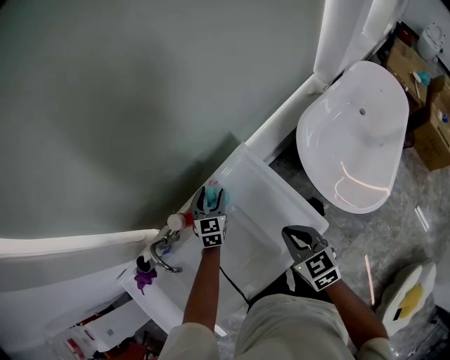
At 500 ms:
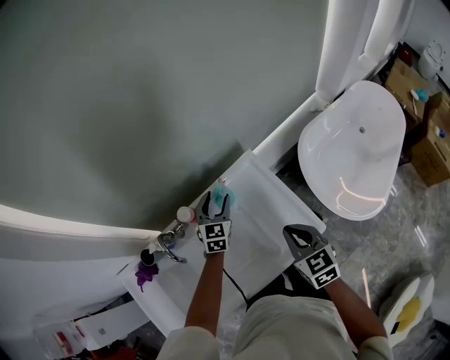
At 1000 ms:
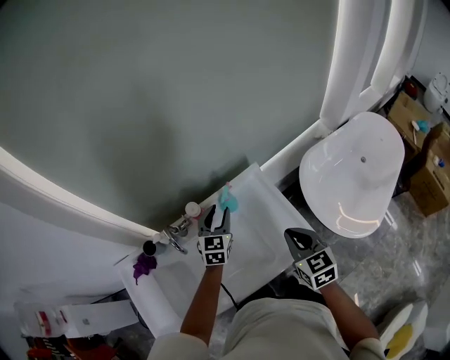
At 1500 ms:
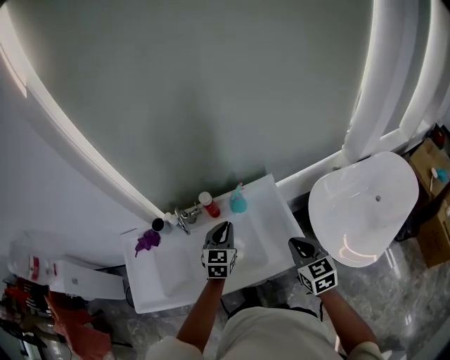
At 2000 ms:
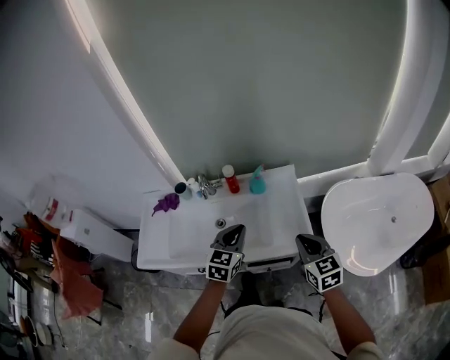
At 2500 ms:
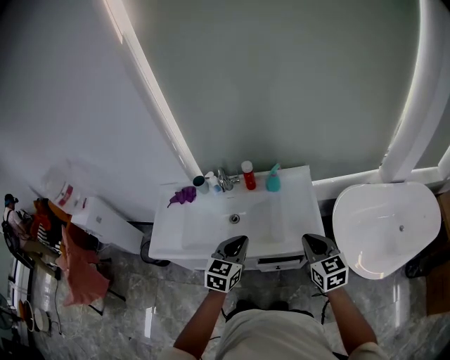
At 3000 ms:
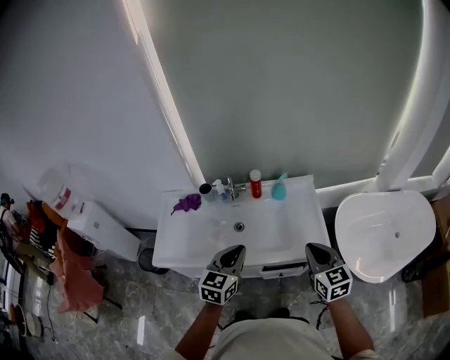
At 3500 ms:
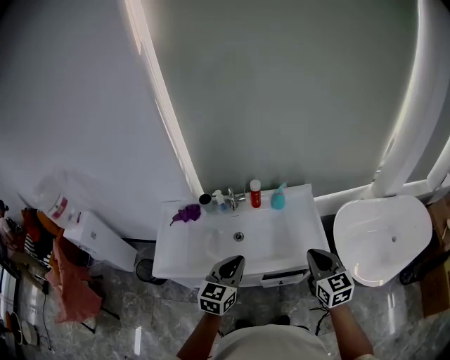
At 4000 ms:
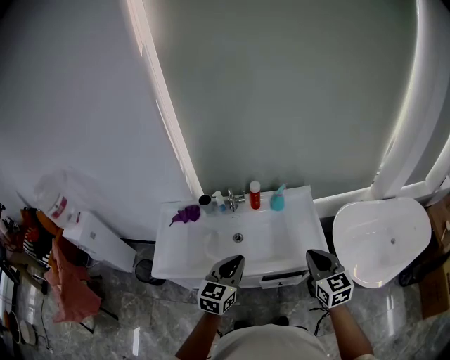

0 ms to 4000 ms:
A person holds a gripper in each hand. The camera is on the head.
0 ms to 2000 ms: The left gripper heads backward and upward, covering roughly 40 cm, changes its angle by roughly 20 degrees, and closes its fingers, while the right gripper goes roughly 20 cm backward and upward, and swivels some 30 degrees.
2000 ms to 4000 ms: The left gripper travels to the left, backward and upward by roughly 20 cm. Meanwhile the right gripper shifts roughly 10 cm to the left, upward and backward.

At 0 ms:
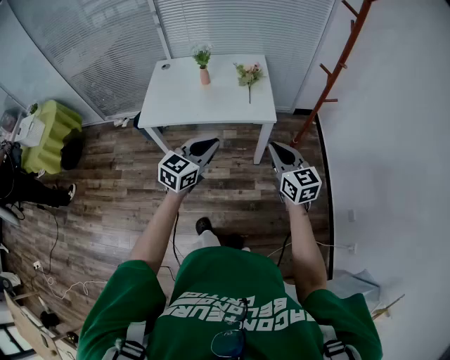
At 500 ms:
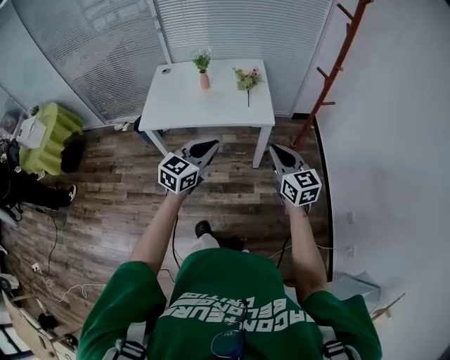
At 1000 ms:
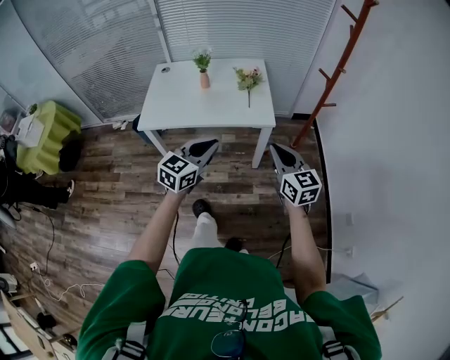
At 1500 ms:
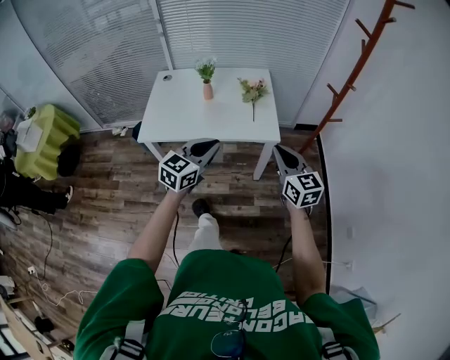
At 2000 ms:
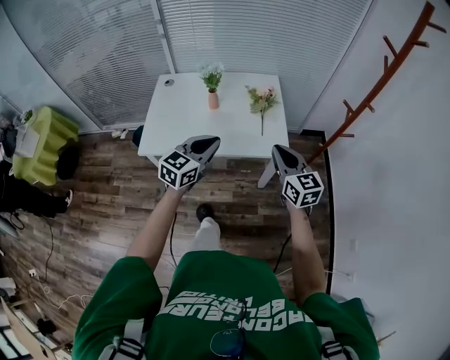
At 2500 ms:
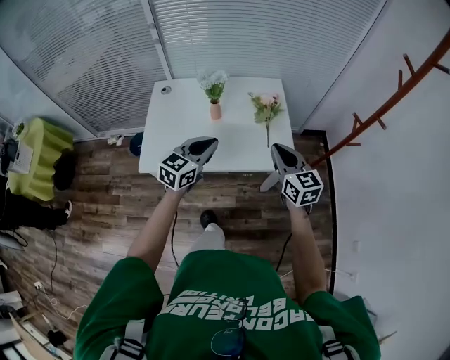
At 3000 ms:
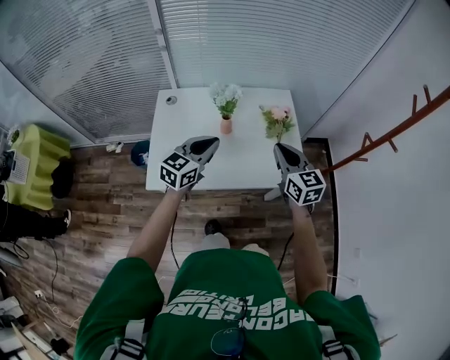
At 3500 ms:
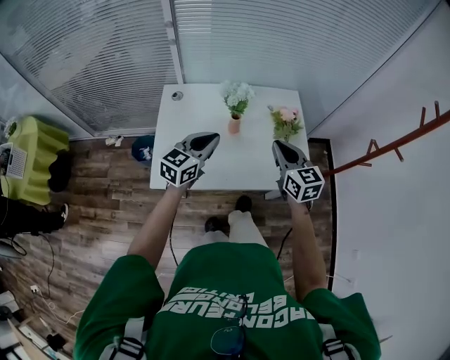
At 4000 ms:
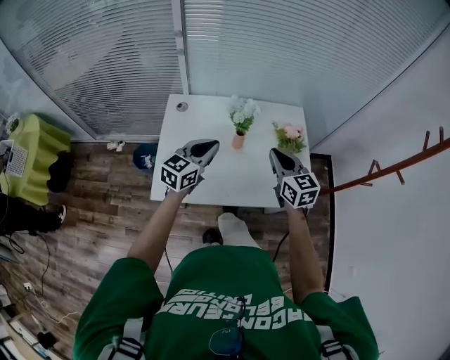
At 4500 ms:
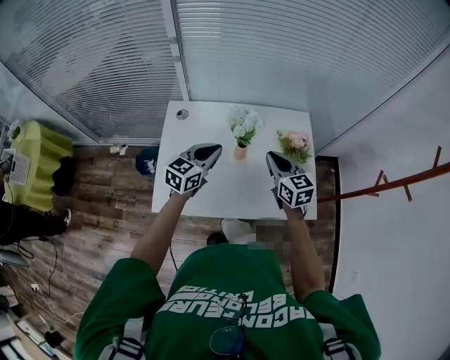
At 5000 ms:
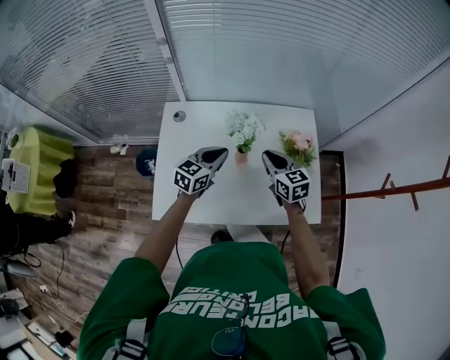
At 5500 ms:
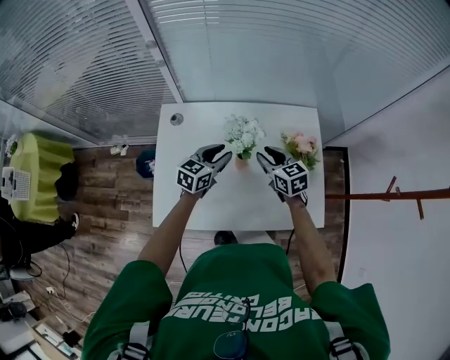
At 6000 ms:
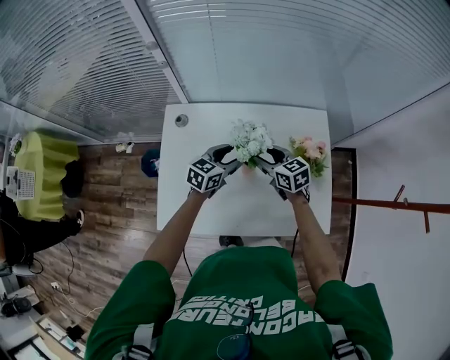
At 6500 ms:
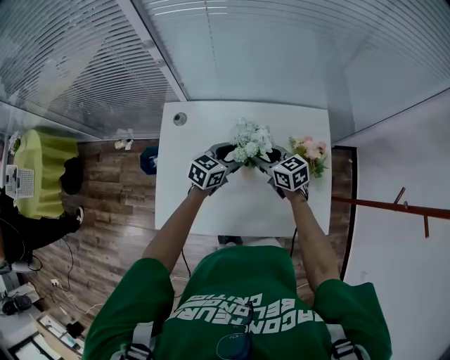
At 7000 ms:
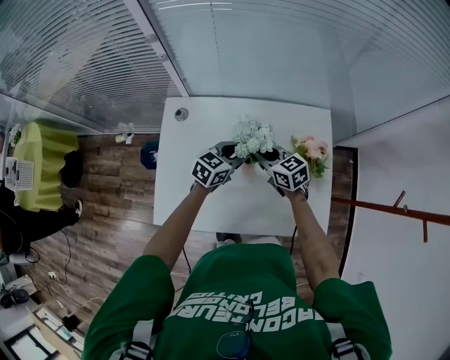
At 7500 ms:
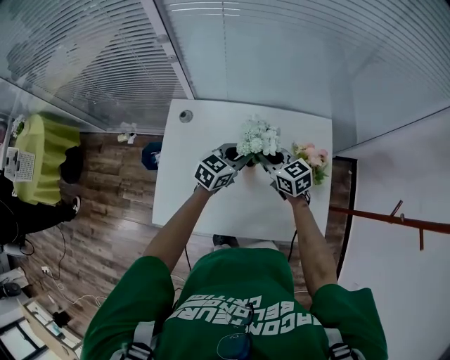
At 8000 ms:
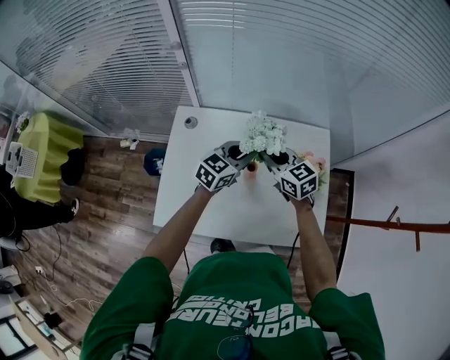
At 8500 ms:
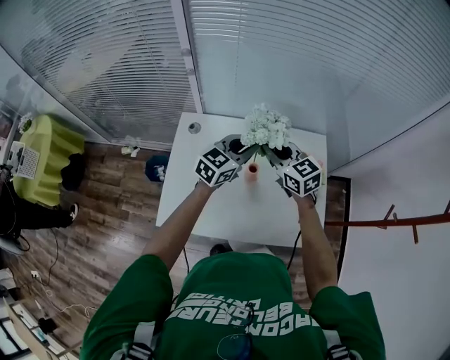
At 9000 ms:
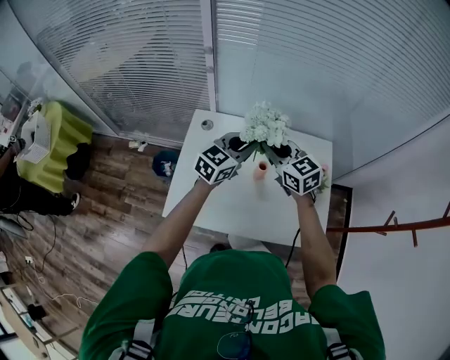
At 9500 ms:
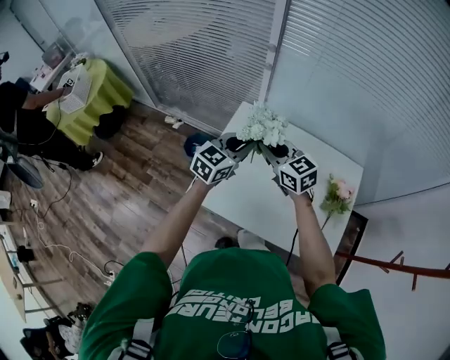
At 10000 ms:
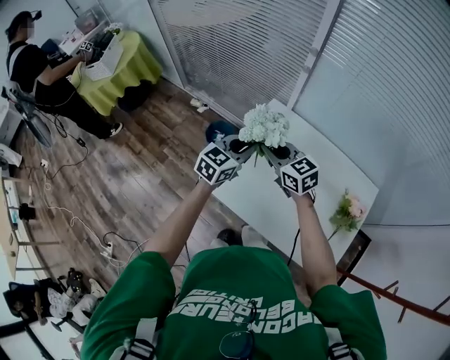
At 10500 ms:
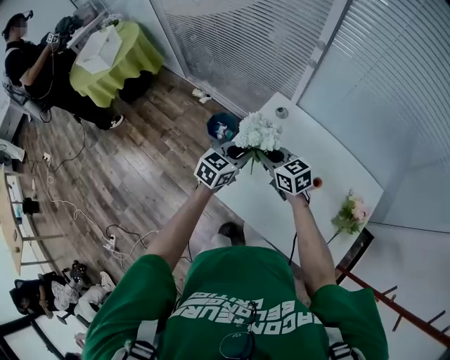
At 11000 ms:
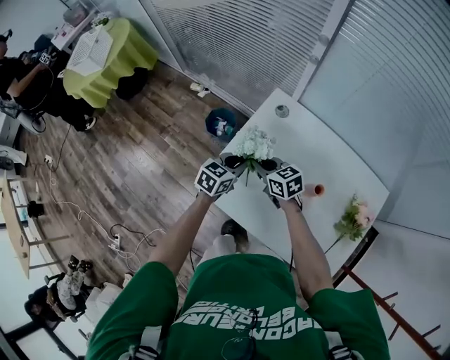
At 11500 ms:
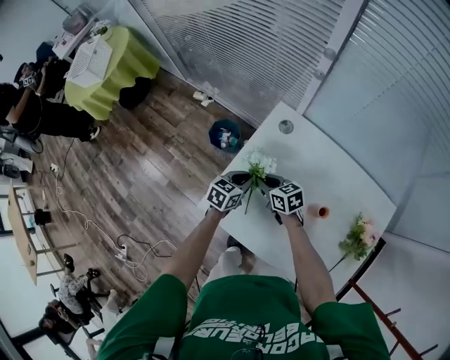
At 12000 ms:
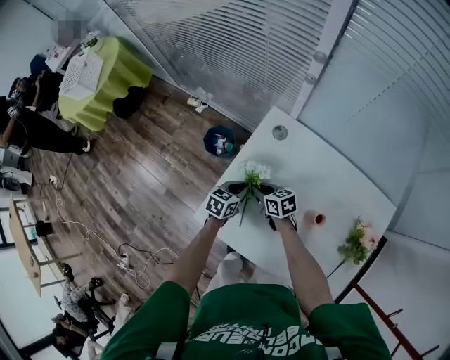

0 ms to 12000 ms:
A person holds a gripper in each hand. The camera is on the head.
0 ms to 2000 ms: Both grippers move forward and to the left, some 20 cm.
2000 ms to 4000 ms: Both grippers move forward and to the left, roughly 30 cm.
4000 ms to 6000 ms: Both grippers move forward and downward, approximately 25 cm. The right gripper changes its angle by about 30 degrees, and opens up, while the left gripper opens its fingers.
6000 ms to 8000 ms: The grippers both shift upward by approximately 10 cm. The right gripper closes up. Meanwhile the left gripper closes its fingers.
8000 ms to 10000 ms: The left gripper shifts by about 30 cm, and changes its angle by roughly 30 degrees; the right gripper shifts by roughly 30 cm, and swivels approximately 30 degrees.
10000 ms to 12000 ms: The two grippers go roughly 35 cm downward. The right gripper rotates some 30 degrees, while the left gripper swivels about 30 degrees.

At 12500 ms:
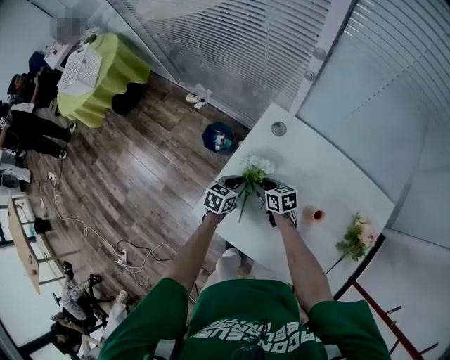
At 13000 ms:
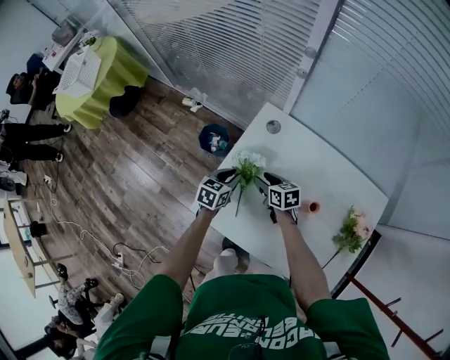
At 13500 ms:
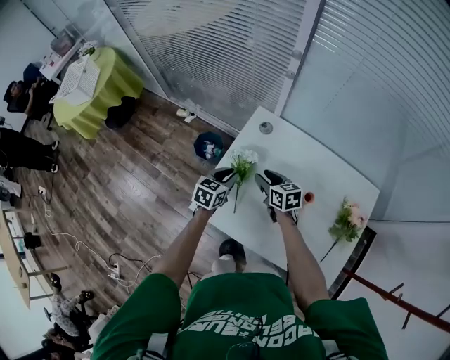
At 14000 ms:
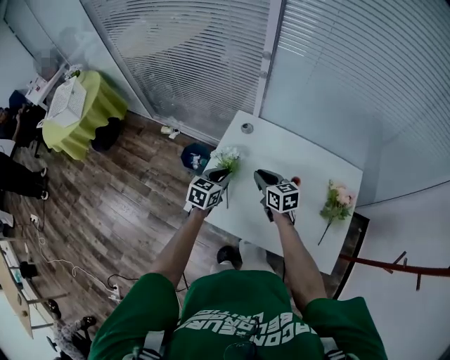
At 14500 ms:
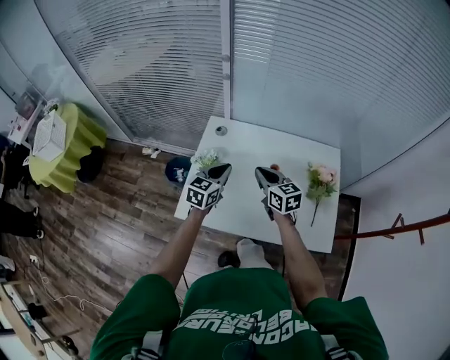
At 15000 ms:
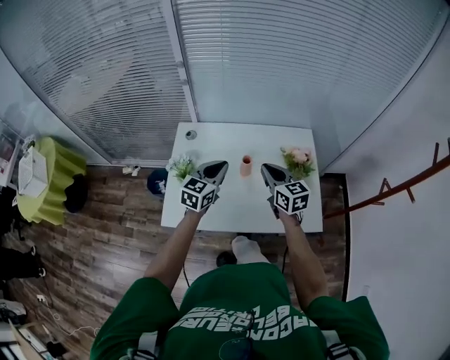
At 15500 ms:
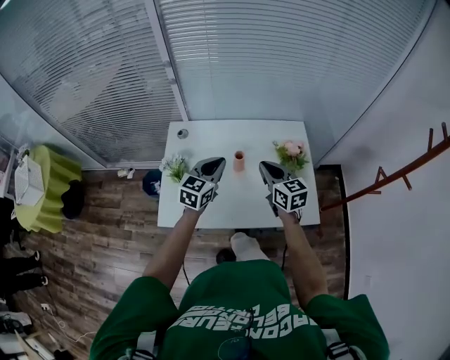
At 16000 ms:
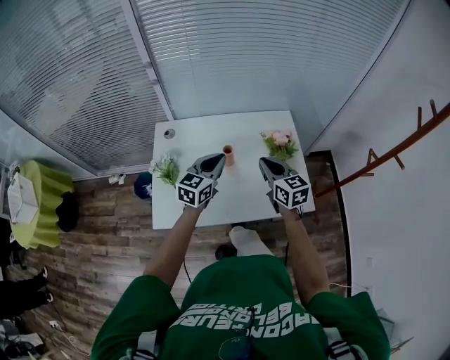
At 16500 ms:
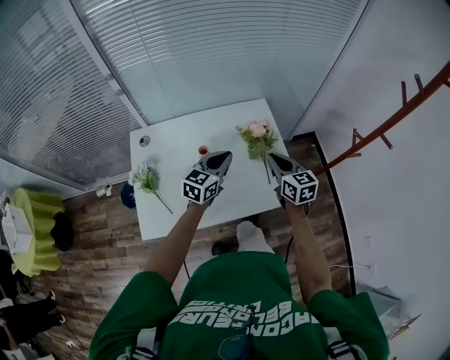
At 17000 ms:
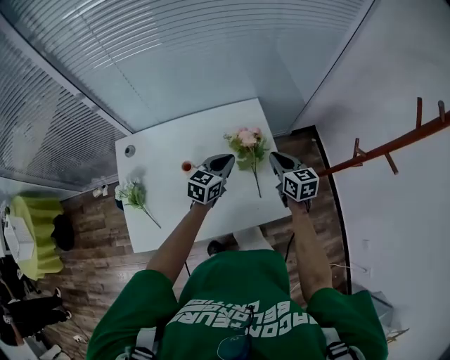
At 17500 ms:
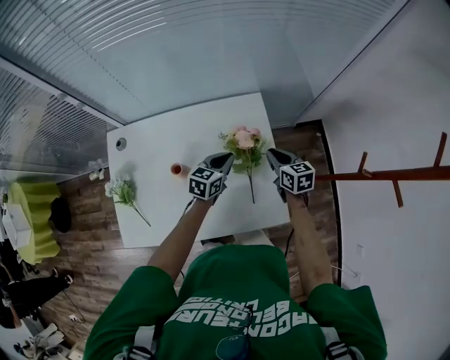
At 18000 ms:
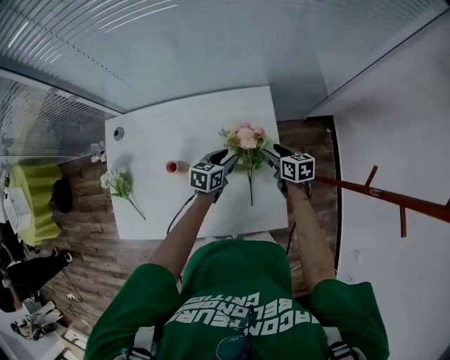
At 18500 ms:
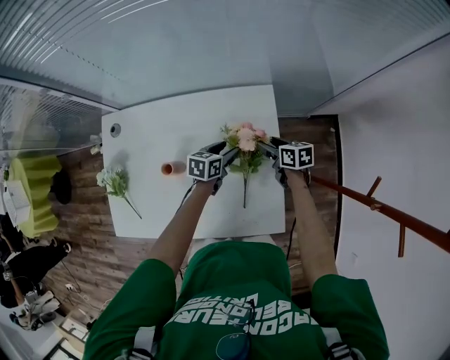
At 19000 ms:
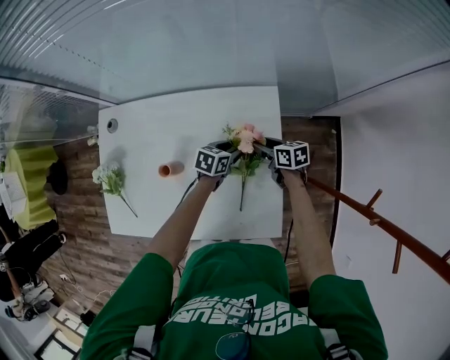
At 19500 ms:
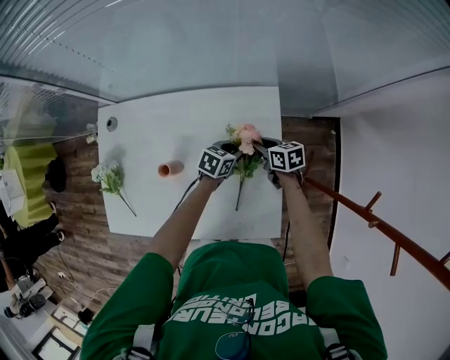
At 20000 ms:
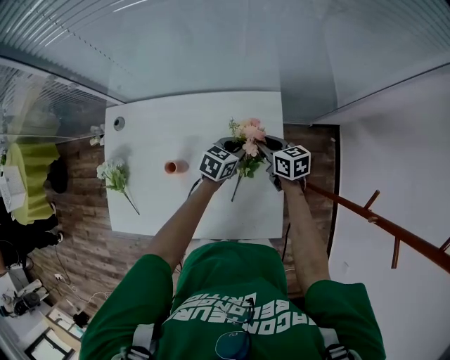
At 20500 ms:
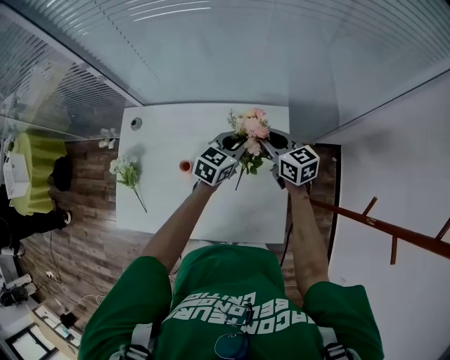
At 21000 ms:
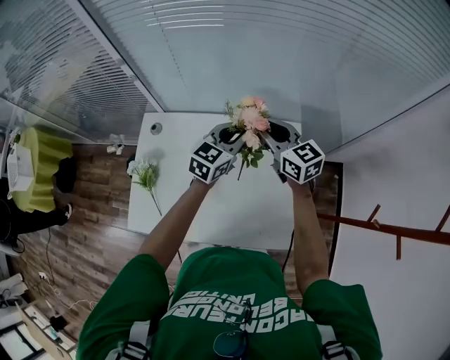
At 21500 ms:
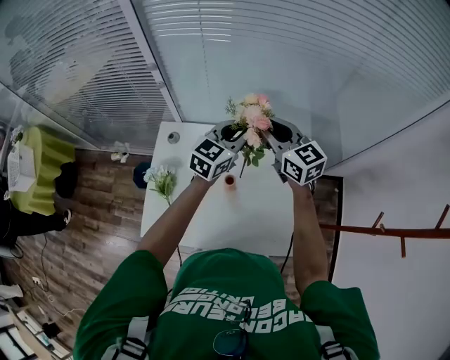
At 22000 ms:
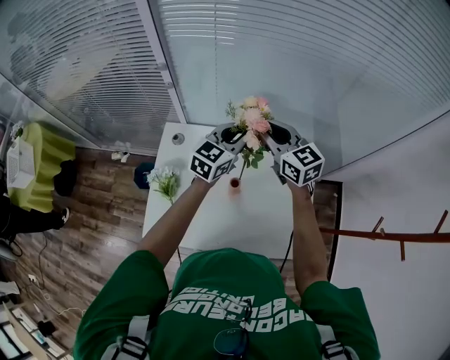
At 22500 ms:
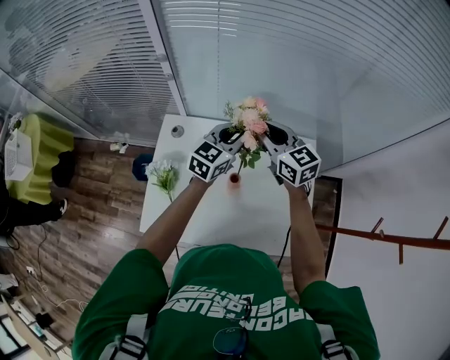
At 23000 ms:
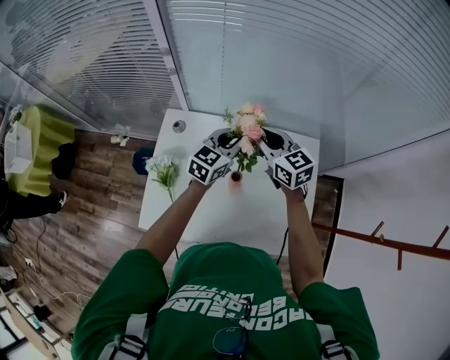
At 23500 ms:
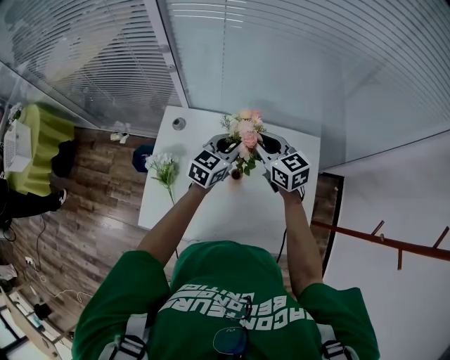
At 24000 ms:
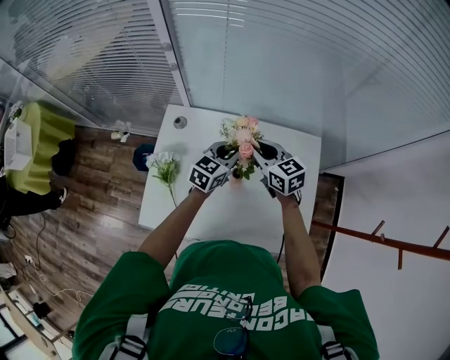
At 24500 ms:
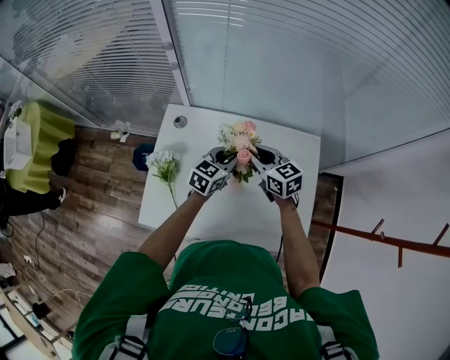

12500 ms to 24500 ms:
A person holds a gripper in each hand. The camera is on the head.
12500 ms to 14500 ms: The left gripper moves upward, backward and to the right, some 25 cm, and turns by approximately 30 degrees, while the right gripper heads upward, to the right and backward, covering roughly 30 cm, and swivels some 40 degrees.
14500 ms to 16500 ms: The left gripper shifts by approximately 25 cm, and changes its angle by some 30 degrees, while the right gripper changes place by roughly 30 cm, and swivels roughly 30 degrees.
16500 ms to 18500 ms: The right gripper moves forward and downward, roughly 35 cm, turns by approximately 40 degrees, and opens, while the left gripper heads downward and forward, covering approximately 30 cm, rotates roughly 40 degrees, and opens up.
18500 ms to 20500 ms: The right gripper heads upward and to the left, covering about 20 cm, changes its angle by some 30 degrees, and closes up; the left gripper shifts roughly 15 cm upward, turns by about 30 degrees, and closes up.
20500 ms to 22500 ms: Both grippers travel together to the left and upward, roughly 25 cm.
22500 ms to 24500 ms: The two grippers go roughly 15 cm downward and backward.
